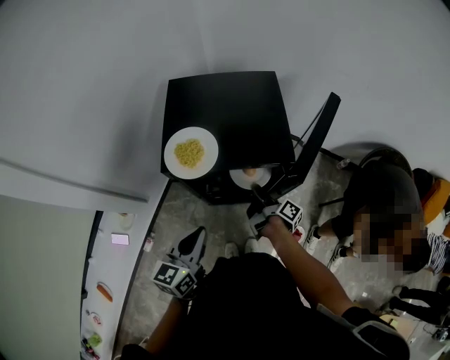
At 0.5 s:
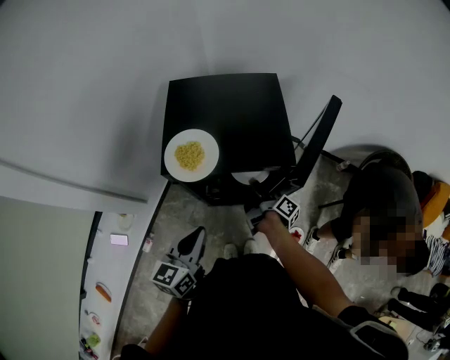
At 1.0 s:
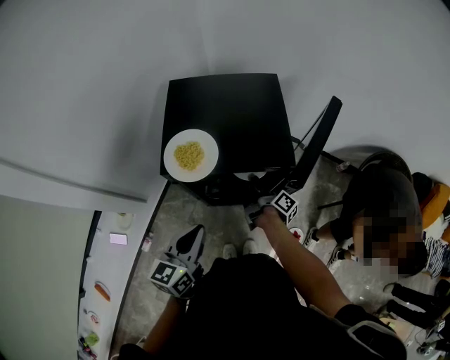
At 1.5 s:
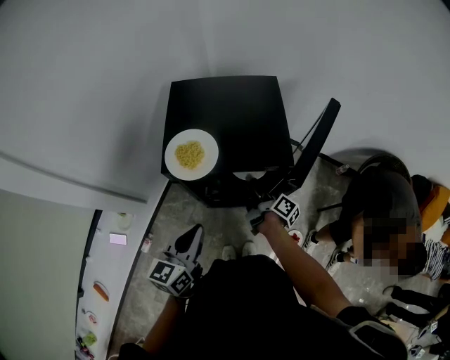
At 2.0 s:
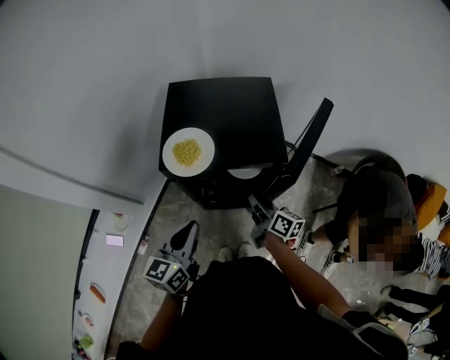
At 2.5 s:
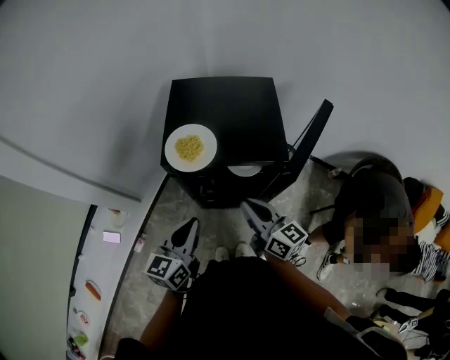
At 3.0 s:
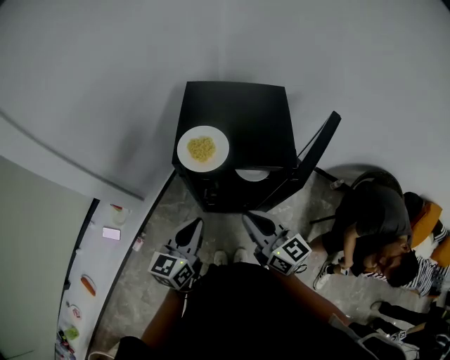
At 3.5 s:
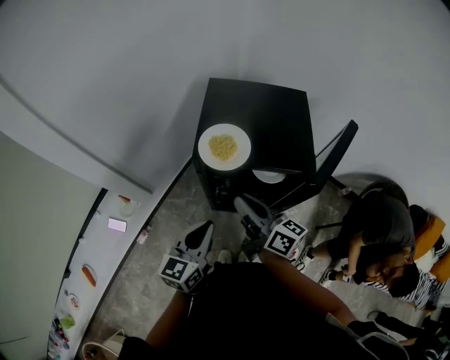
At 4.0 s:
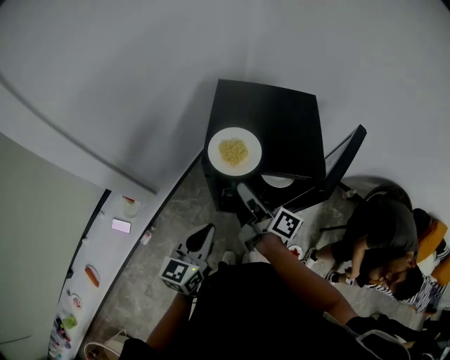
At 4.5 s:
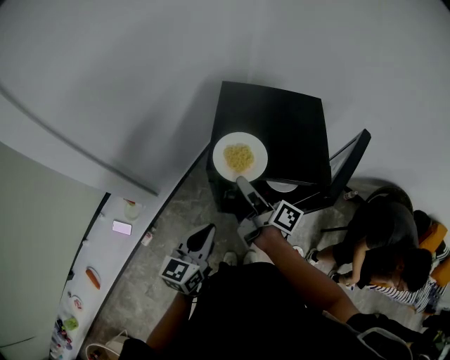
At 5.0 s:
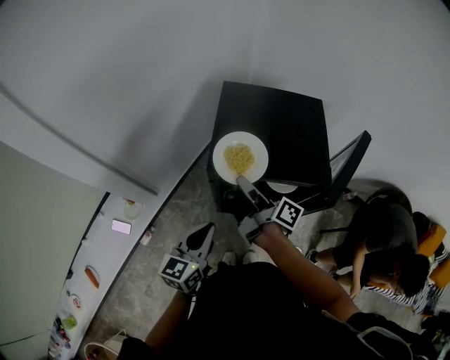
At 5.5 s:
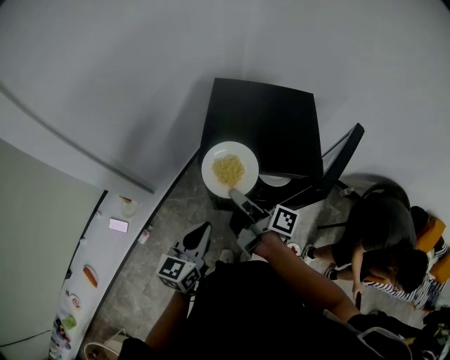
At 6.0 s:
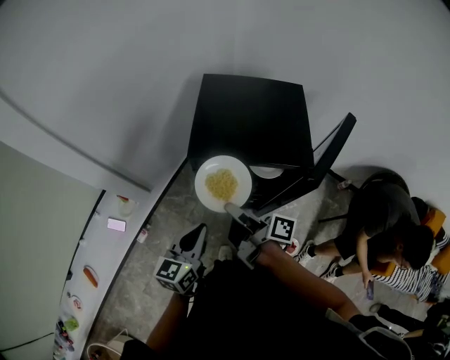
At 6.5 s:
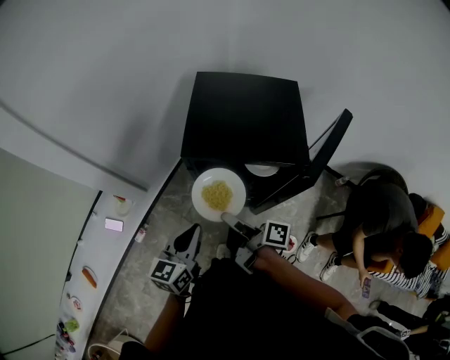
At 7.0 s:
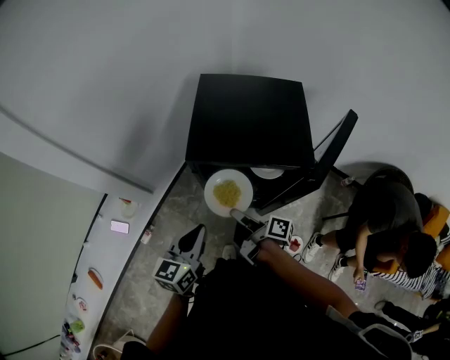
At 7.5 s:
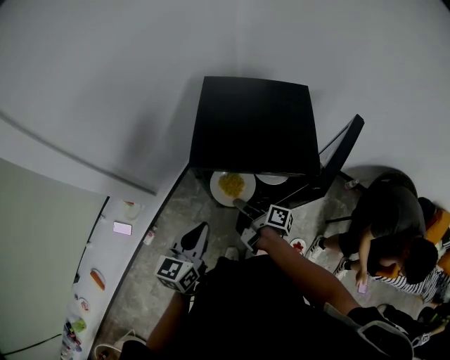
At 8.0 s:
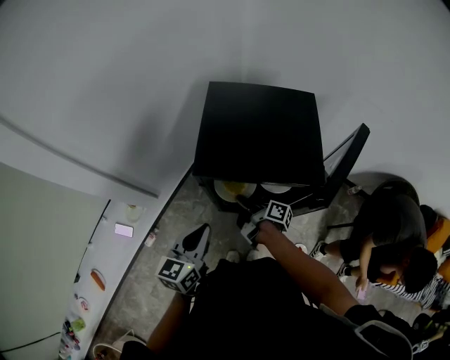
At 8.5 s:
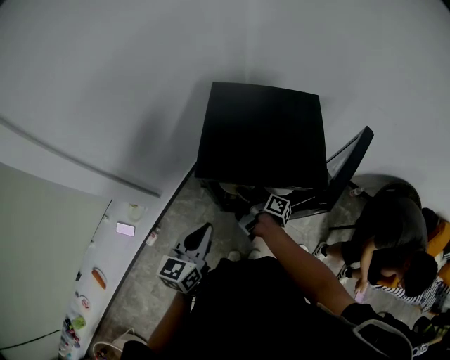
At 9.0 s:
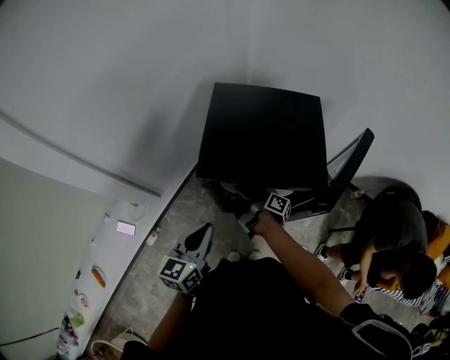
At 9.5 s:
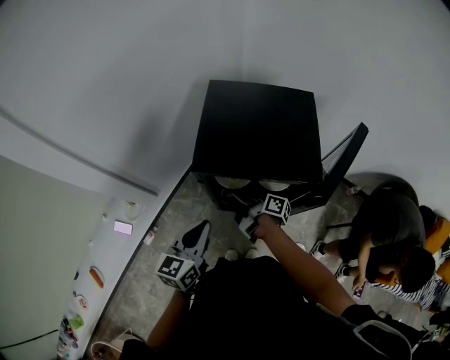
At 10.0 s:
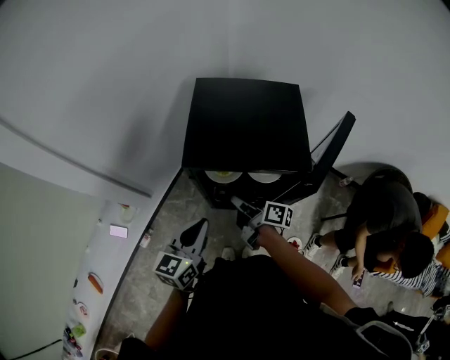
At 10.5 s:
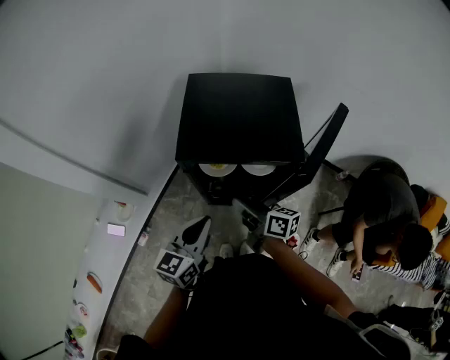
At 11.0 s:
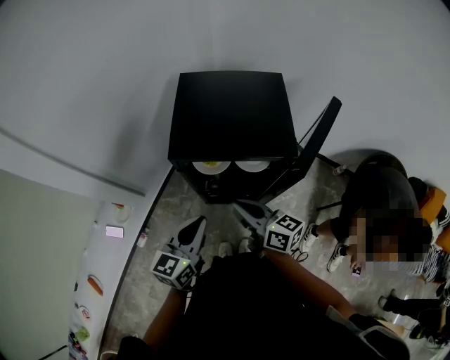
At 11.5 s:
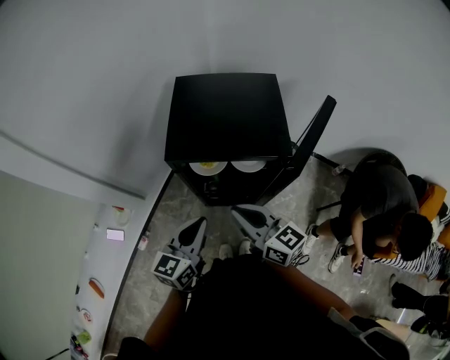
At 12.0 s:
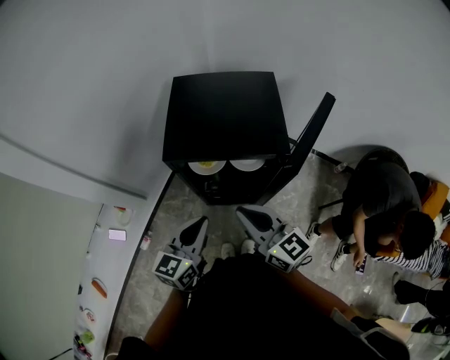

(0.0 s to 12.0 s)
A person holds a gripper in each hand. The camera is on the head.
0.0 s - 2.0 s: The right gripper travels upward by roughly 5 cm, twists roughly 40 degrees counterclockwise, seen from behind, and opens, then closes once more.
2.0 s - 4.0 s: The right gripper is displaced to the left and upward by some 20 cm, and changes its angle by roughly 20 degrees. The left gripper changes place by roughly 5 cm.
4.0 s - 6.0 s: The right gripper is displaced backward by some 10 cm, and changes its angle by roughly 20 degrees.
6.0 s - 8.0 s: The right gripper goes about 20 cm downward and forward. Meanwhile the left gripper goes about 5 cm forward.
8.0 s - 10.0 s: The right gripper heads upward, covering about 5 cm.
10.0 s - 12.0 s: The left gripper moves some 5 cm, while the right gripper shifts some 20 cm upward and backward, and twists roughly 60 degrees counterclockwise, seen from behind.

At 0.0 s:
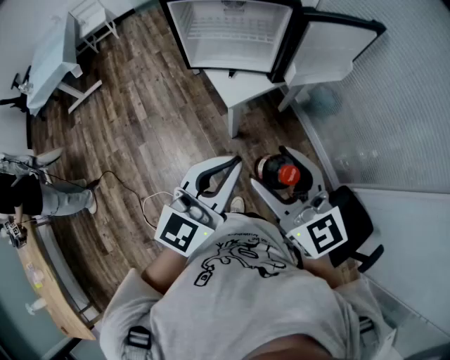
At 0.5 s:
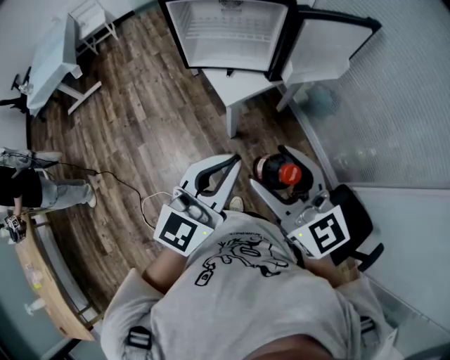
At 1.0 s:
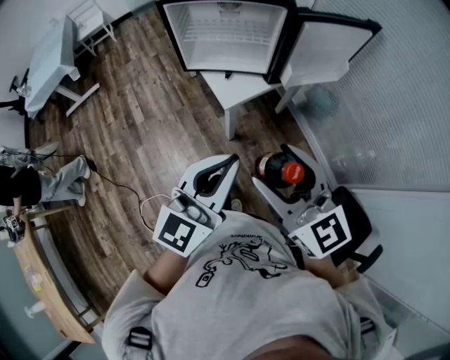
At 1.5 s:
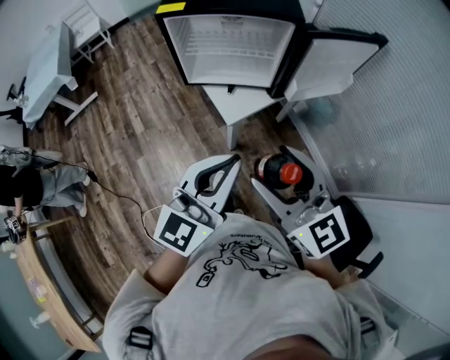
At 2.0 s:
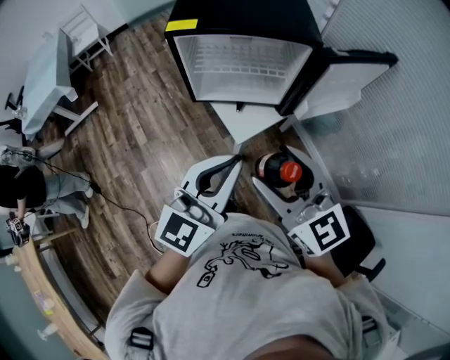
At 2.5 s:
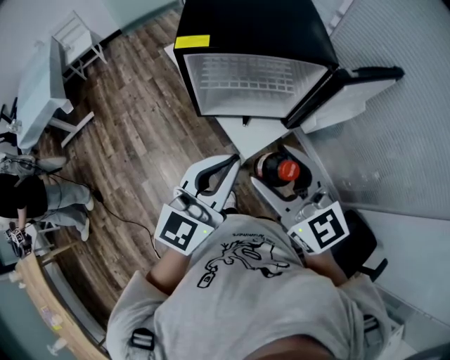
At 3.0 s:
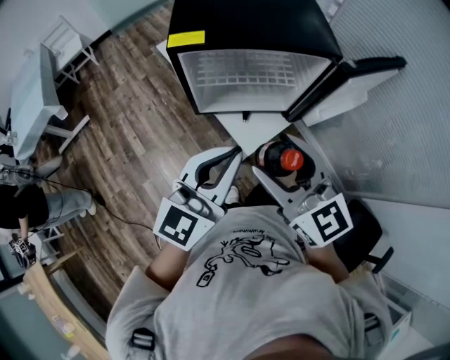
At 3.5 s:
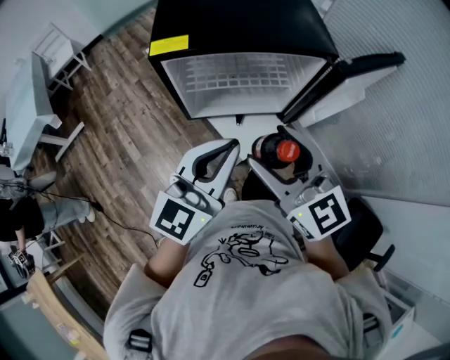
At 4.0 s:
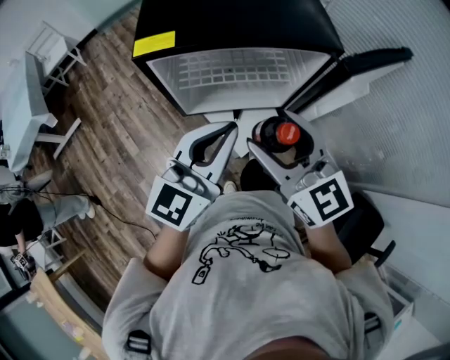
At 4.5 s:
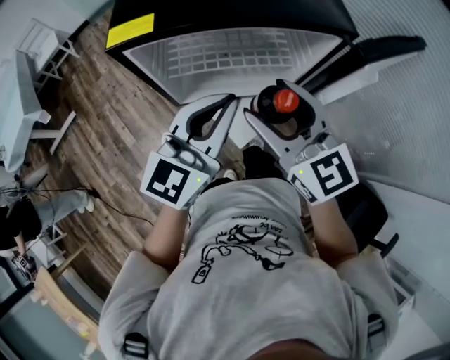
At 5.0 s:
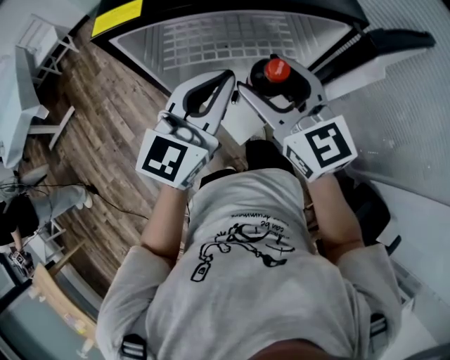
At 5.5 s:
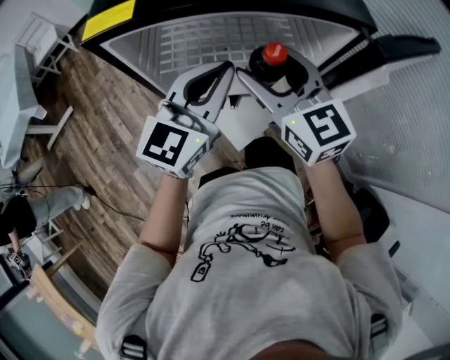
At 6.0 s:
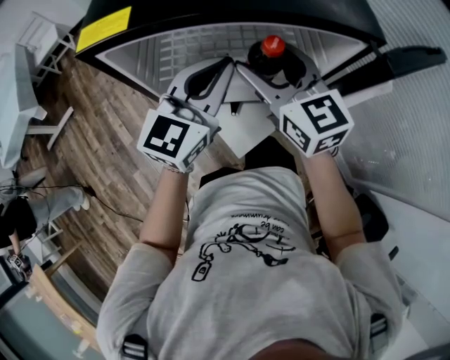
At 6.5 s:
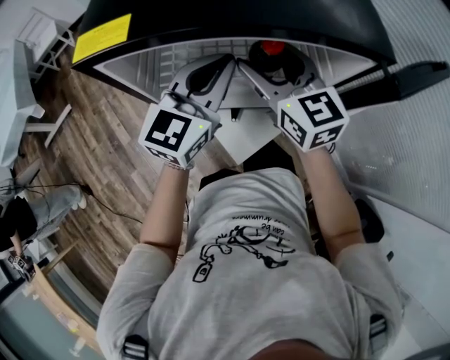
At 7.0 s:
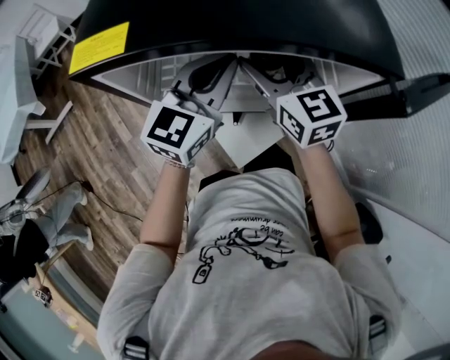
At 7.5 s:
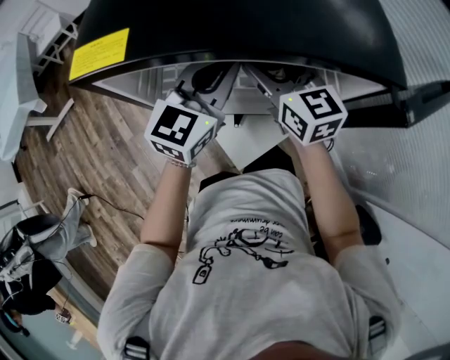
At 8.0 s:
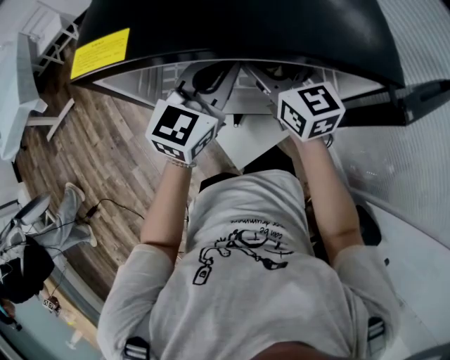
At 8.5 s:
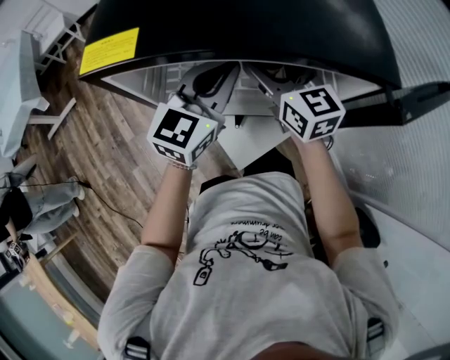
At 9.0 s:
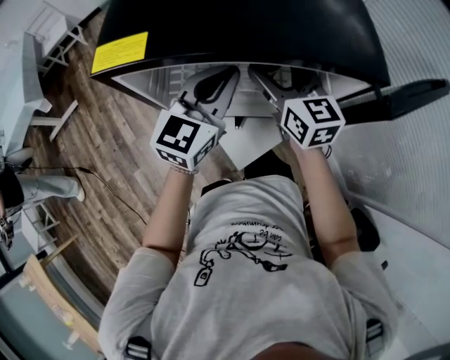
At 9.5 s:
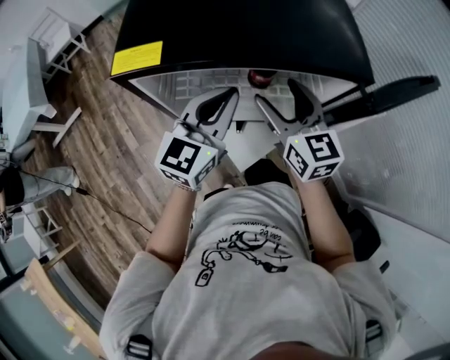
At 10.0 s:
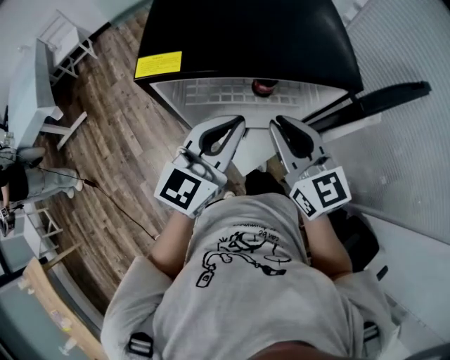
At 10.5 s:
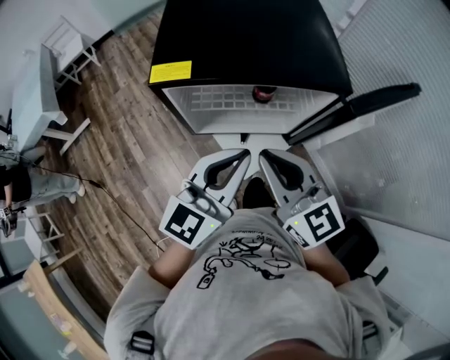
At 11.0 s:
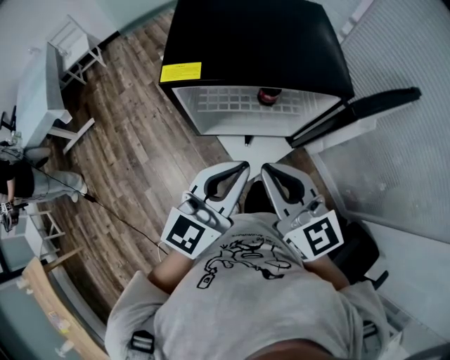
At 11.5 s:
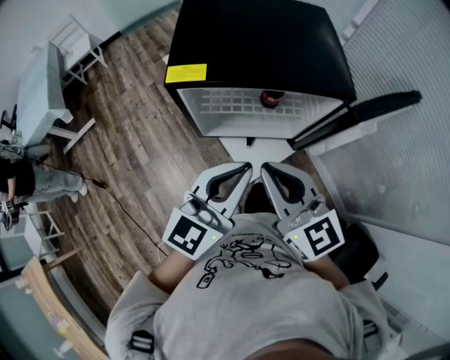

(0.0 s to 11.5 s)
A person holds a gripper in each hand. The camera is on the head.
0.0 s - 2.0 s: The left gripper moves forward and to the left, some 15 cm. Meanwhile the right gripper shifts roughly 15 cm forward.
2.0 s - 4.0 s: The two grippers go about 20 cm forward.
4.0 s - 6.0 s: Both grippers travel together forward and downward, roughly 20 cm.
6.0 s - 7.5 s: The grippers both shift forward by about 5 cm.
7.5 s - 9.5 s: Both grippers travel together backward, about 5 cm.
9.5 s - 11.5 s: Both grippers travel together backward and upward, about 20 cm. The right gripper closes.

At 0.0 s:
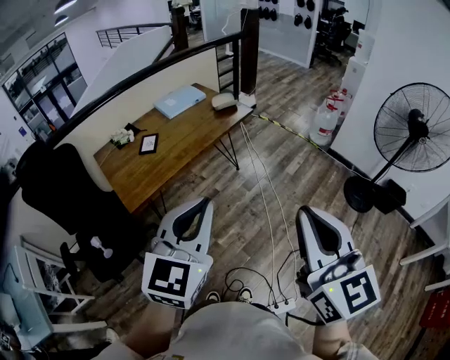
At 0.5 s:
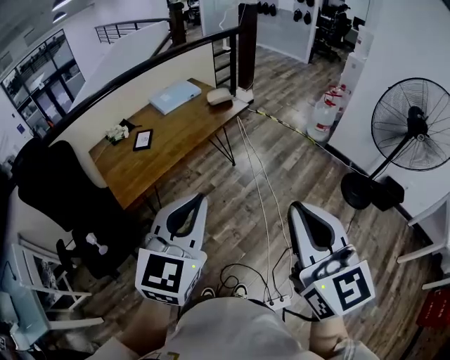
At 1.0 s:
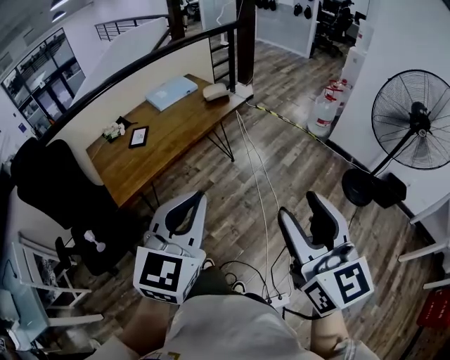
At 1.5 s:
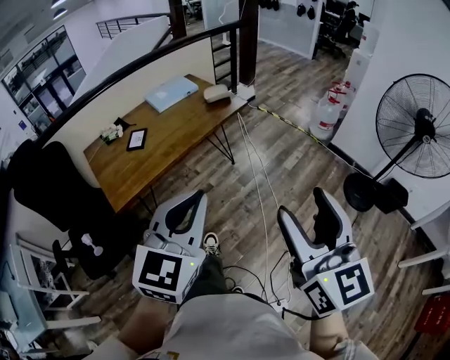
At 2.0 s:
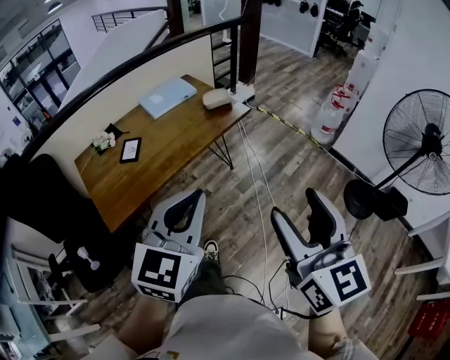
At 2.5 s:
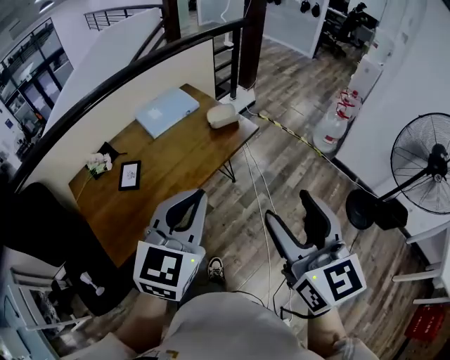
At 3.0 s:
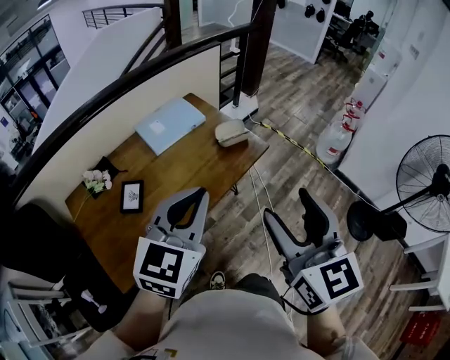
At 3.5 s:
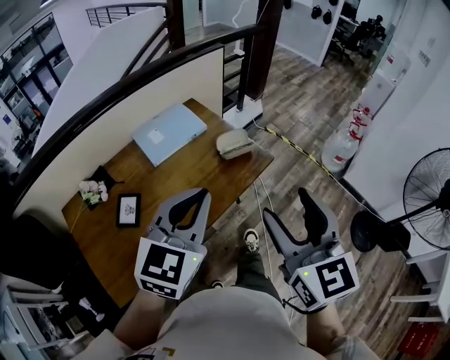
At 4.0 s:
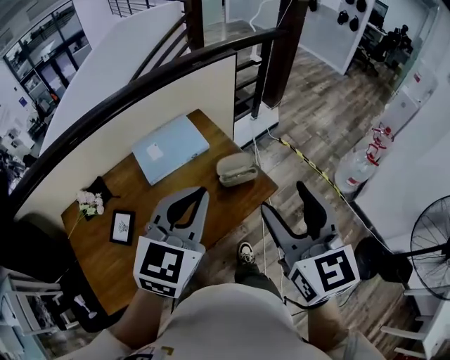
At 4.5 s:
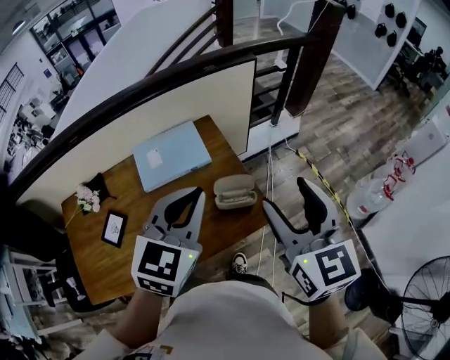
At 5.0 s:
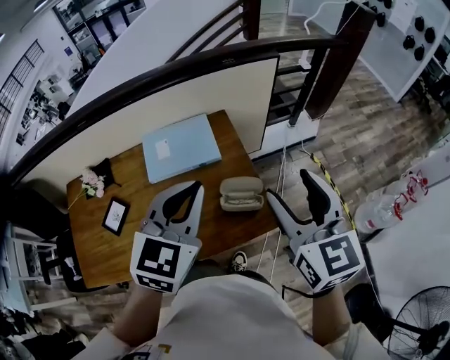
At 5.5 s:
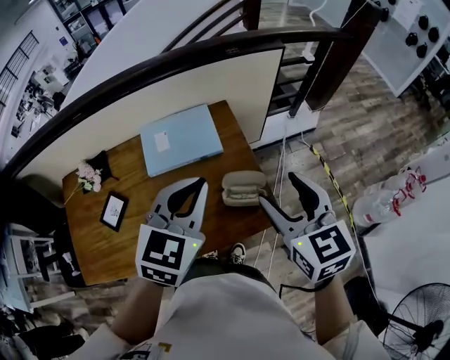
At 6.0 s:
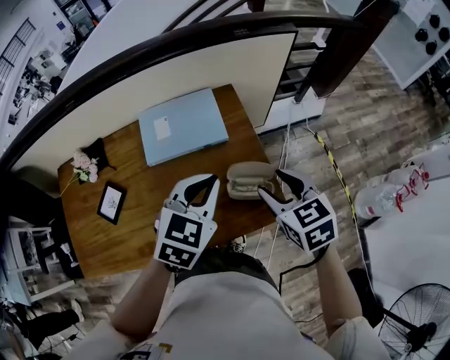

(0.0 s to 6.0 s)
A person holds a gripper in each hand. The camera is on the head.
0.0 s - 2.0 s: The two grippers go about 20 cm forward. The right gripper opens its fingers.
2.0 s - 4.0 s: The two grippers travel together, forward, some 50 cm.
4.0 s - 6.0 s: Both grippers travel together forward and downward, about 30 cm. The right gripper tips its fingers downward by about 30 degrees, while the left gripper turns by some 20 degrees.
